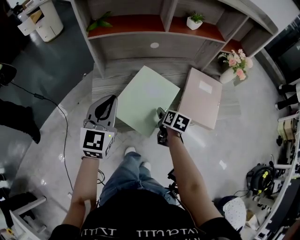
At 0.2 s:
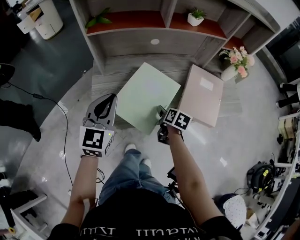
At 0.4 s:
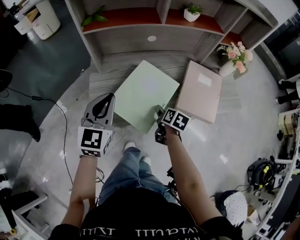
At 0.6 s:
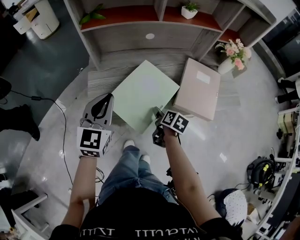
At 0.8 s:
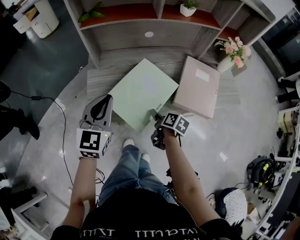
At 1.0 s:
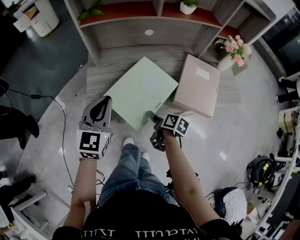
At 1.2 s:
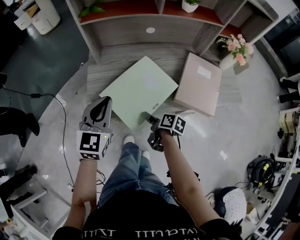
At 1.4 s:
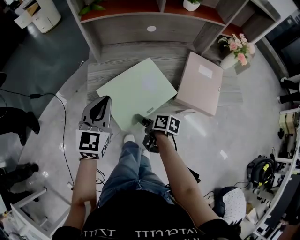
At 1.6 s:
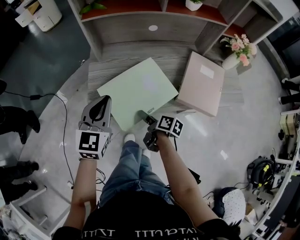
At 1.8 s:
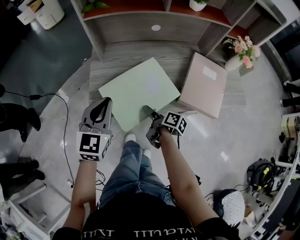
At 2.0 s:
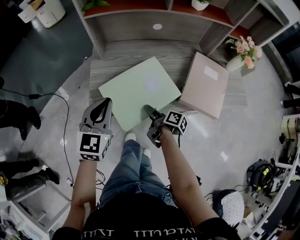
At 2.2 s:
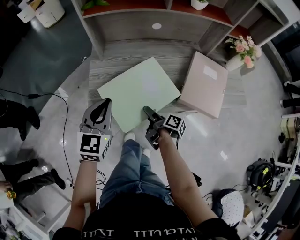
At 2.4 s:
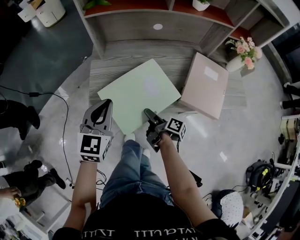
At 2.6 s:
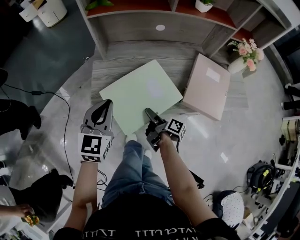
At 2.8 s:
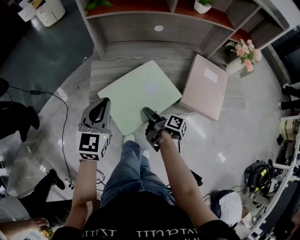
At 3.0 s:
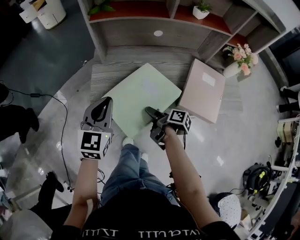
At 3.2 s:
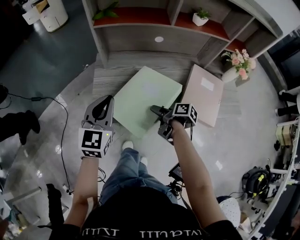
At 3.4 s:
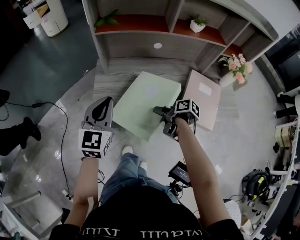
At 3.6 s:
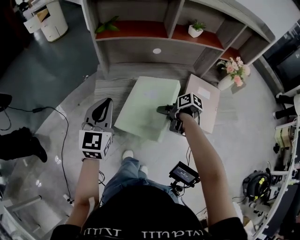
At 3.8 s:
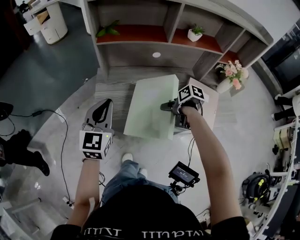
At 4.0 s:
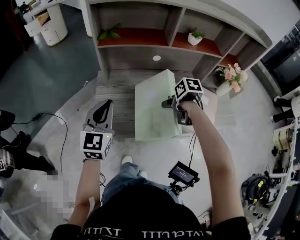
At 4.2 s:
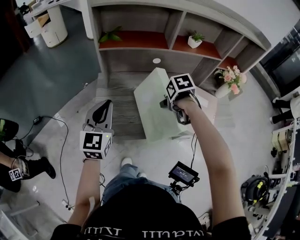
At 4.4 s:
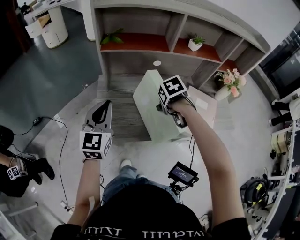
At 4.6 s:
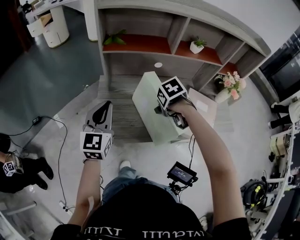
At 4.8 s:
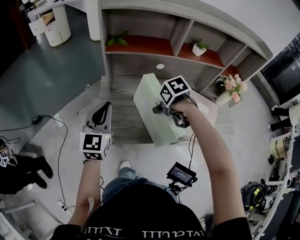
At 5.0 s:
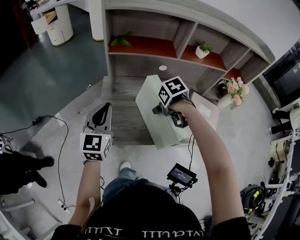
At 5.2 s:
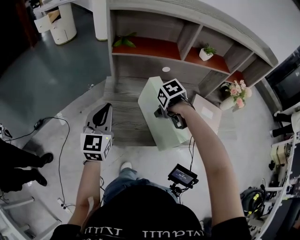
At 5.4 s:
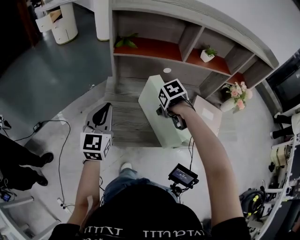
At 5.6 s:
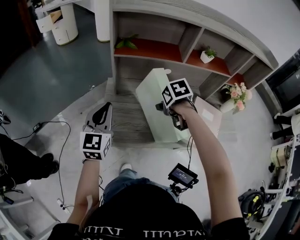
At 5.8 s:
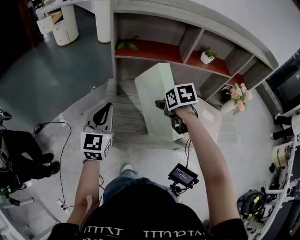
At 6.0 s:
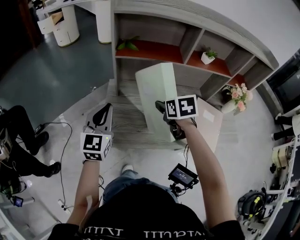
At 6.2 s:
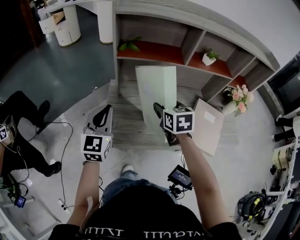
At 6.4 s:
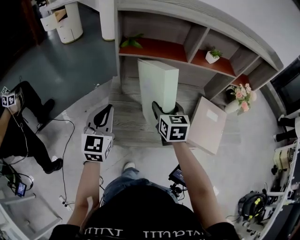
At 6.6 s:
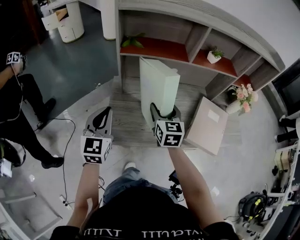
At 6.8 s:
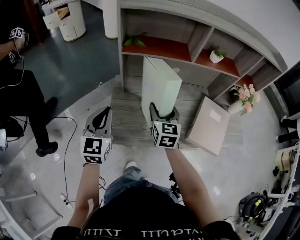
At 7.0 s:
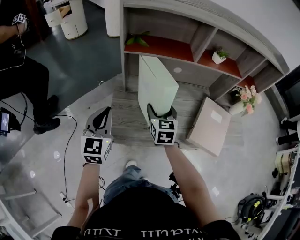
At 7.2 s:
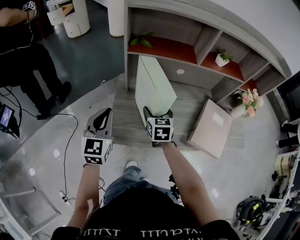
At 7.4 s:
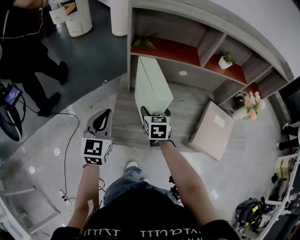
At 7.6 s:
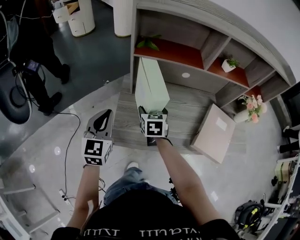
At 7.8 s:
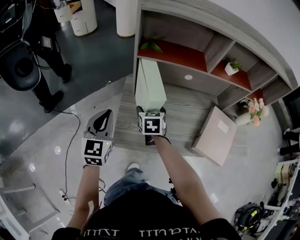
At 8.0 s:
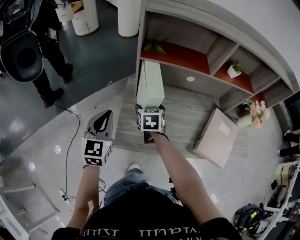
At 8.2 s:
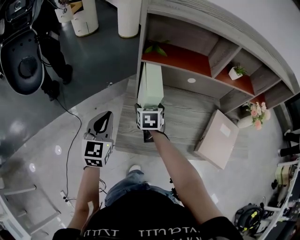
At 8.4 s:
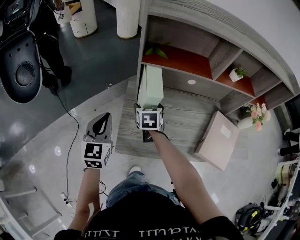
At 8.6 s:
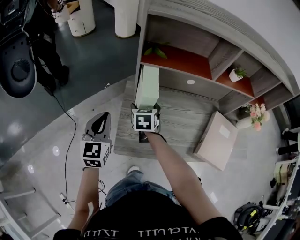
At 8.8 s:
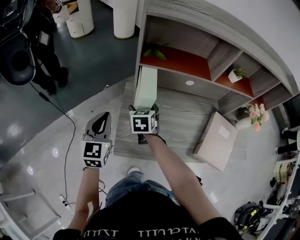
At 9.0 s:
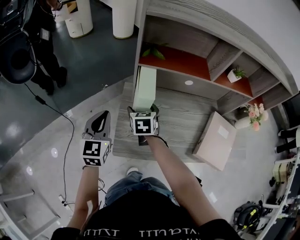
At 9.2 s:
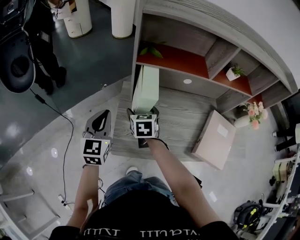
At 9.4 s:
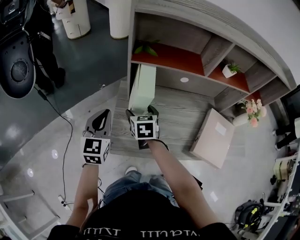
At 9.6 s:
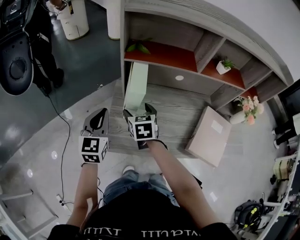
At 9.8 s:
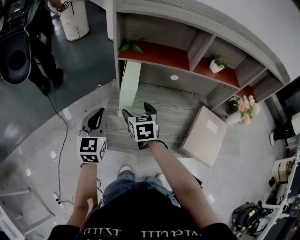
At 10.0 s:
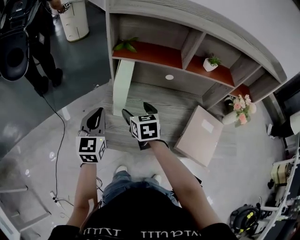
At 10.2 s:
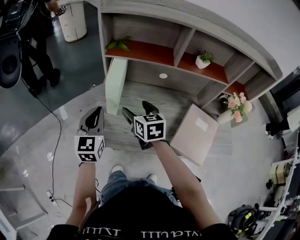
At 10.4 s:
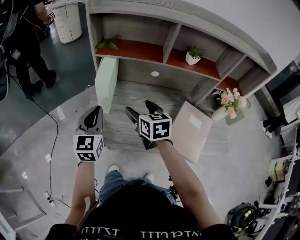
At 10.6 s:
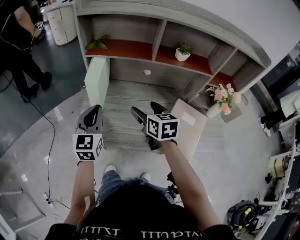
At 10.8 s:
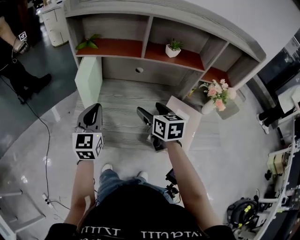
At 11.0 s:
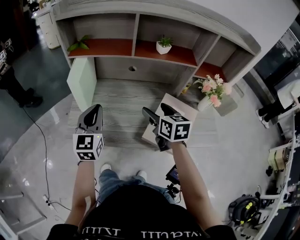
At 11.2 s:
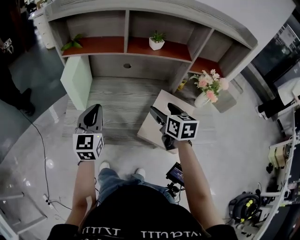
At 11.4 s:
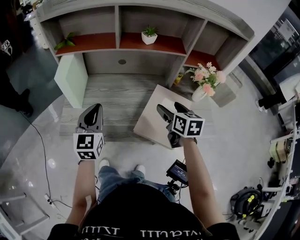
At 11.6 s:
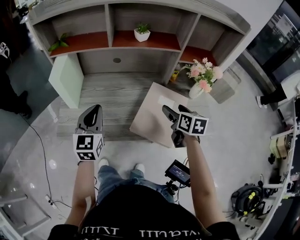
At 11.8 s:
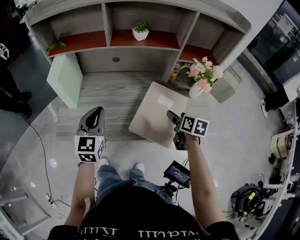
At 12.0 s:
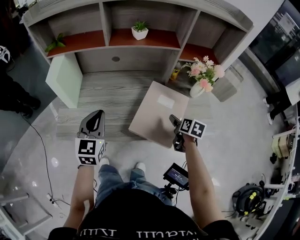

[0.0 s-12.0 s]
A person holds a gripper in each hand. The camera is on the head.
0.0 to 1.6 s: The right gripper is displaced to the left and backward by approximately 15 cm, and rotates roughly 40 degrees, while the left gripper ends up roughly 5 cm from where it was.
3.0 to 4.4 s: The left gripper is displaced upward by approximately 5 cm, while the right gripper moves upward, about 15 cm, and angles its fingers downward, by some 50 degrees.
4.4 to 6.0 s: The right gripper shifts by approximately 10 cm, and tips its fingers upward by approximately 30 degrees.
6.0 to 7.6 s: The left gripper travels to the left by some 5 cm; the right gripper shifts about 15 cm to the left and downward.
7.6 to 9.0 s: The right gripper heads to the left and forward, covering about 10 cm. Meanwhile the left gripper heads forward, covering roughly 5 cm.
9.0 to 10.4 s: The right gripper moves to the right, backward and upward, roughly 25 cm; the left gripper heads to the right and backward, covering some 15 cm.
10.4 to 12.0 s: The left gripper shifts roughly 20 cm to the right, while the right gripper travels to the right by approximately 40 cm, and swivels roughly 40 degrees.

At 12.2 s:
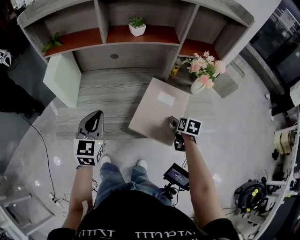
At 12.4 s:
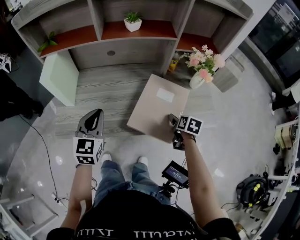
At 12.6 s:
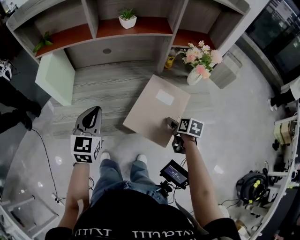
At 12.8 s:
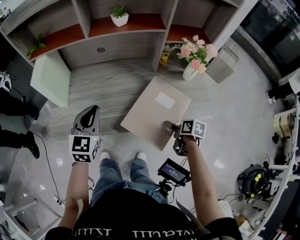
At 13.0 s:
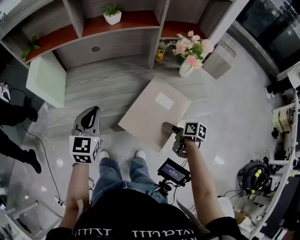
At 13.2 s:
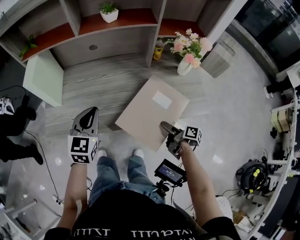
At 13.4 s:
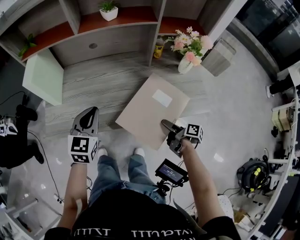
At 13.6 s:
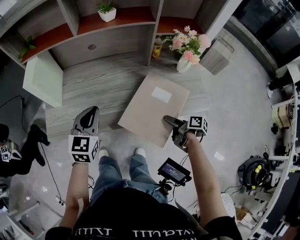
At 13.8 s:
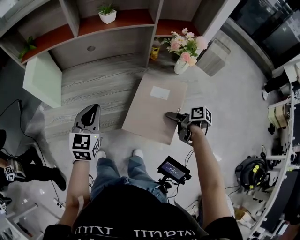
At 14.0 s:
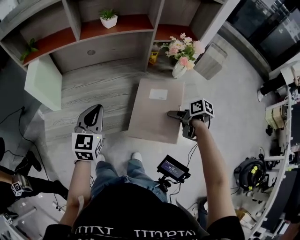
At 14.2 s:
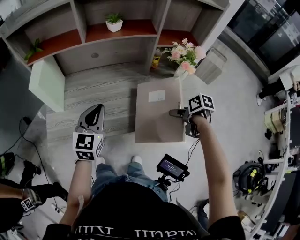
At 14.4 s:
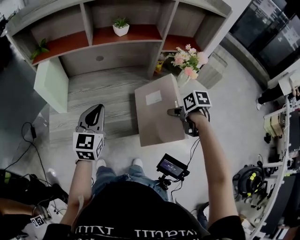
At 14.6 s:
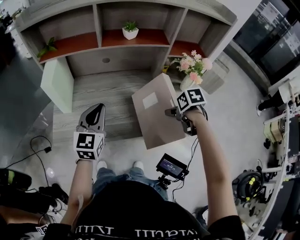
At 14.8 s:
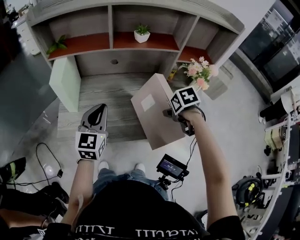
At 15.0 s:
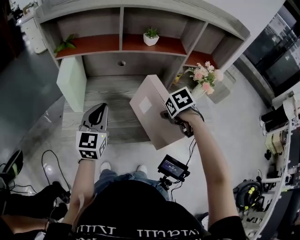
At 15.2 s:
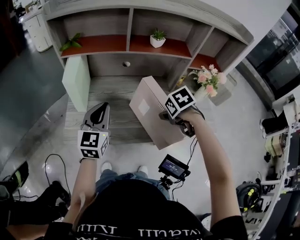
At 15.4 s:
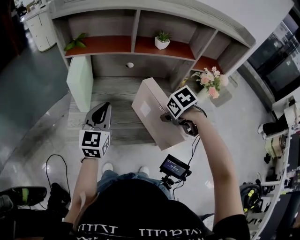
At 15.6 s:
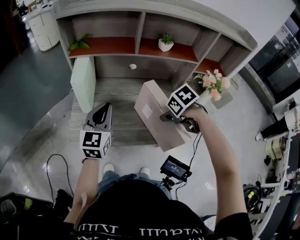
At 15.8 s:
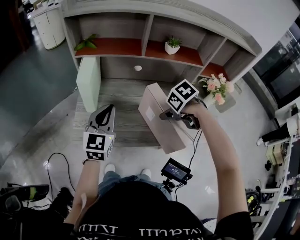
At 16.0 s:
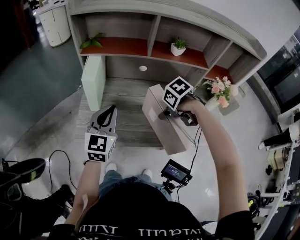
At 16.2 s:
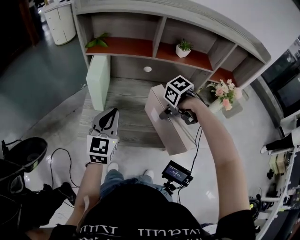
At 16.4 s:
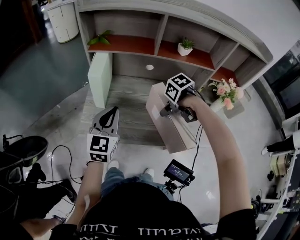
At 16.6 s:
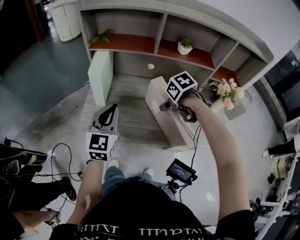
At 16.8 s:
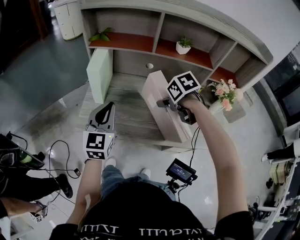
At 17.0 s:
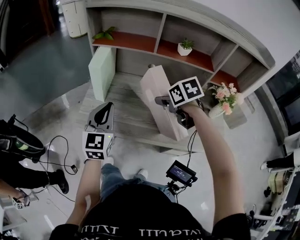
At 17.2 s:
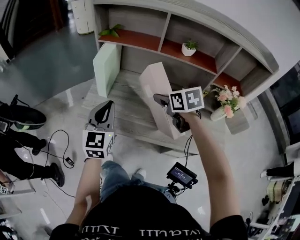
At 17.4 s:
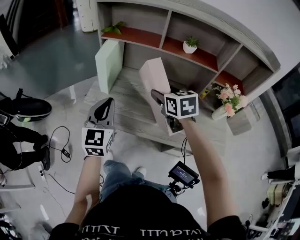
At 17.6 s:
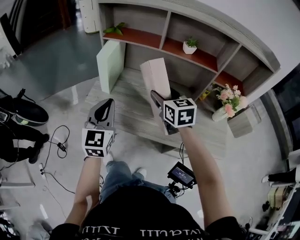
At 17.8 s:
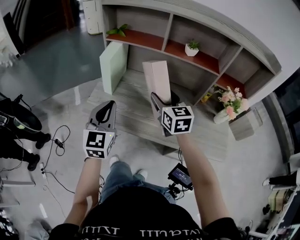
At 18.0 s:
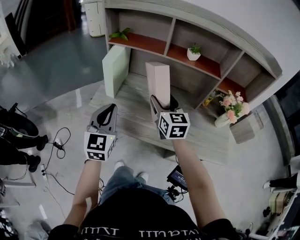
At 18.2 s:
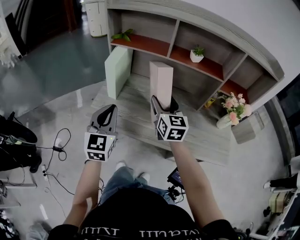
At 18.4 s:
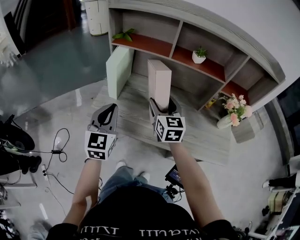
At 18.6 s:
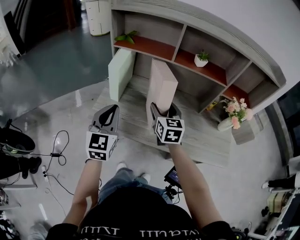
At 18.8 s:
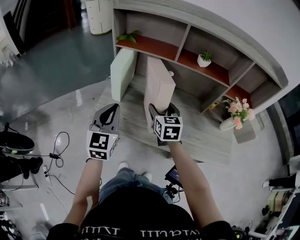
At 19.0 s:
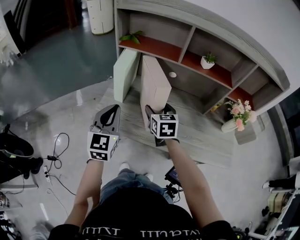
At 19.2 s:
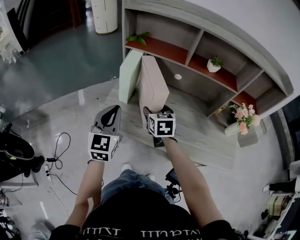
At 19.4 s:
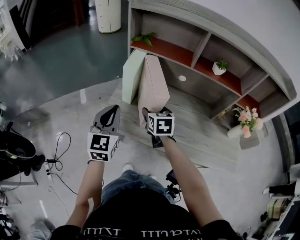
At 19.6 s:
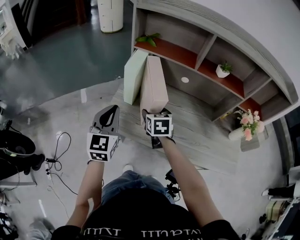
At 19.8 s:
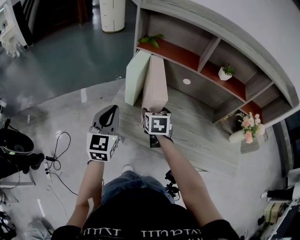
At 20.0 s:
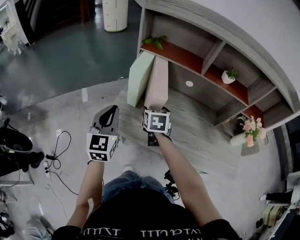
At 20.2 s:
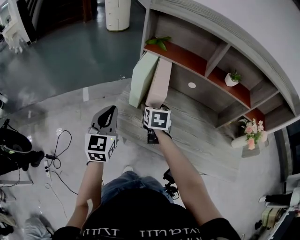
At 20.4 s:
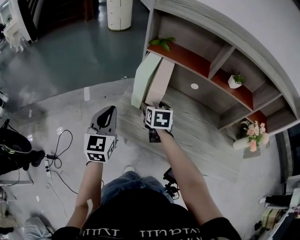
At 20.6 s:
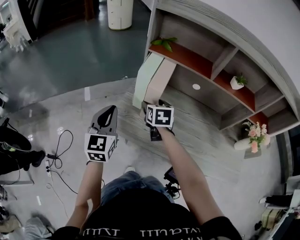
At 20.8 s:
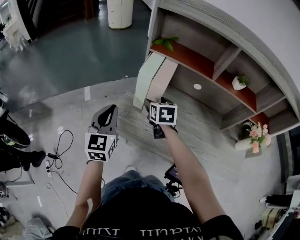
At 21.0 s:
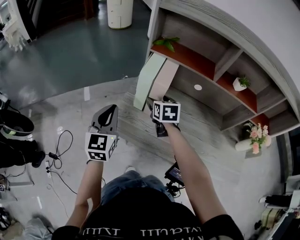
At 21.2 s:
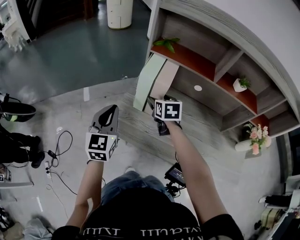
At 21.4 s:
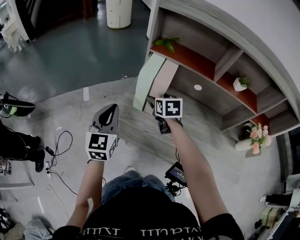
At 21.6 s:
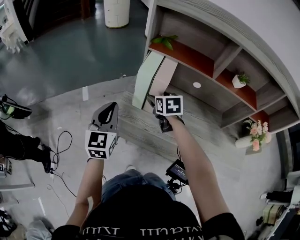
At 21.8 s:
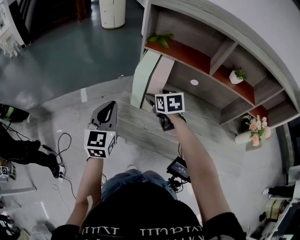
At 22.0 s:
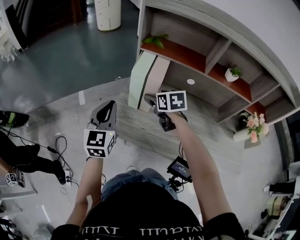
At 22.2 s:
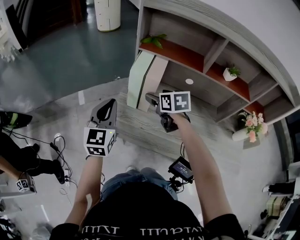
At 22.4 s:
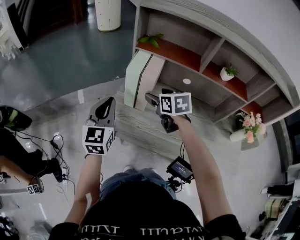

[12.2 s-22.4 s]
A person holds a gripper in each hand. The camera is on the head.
12.2 to 13.6 s: The left gripper heads to the right, covering about 5 cm, while the right gripper moves backward, some 10 cm, and turns by some 50 degrees.
13.6 to 15.2 s: The right gripper ends up roughly 25 cm from where it was, and rotates around the line of its fingers by some 70 degrees, counterclockwise from behind. Meanwhile the left gripper ends up roughly 15 cm from where it was.
15.2 to 16.6 s: The right gripper shifts by approximately 10 cm. The left gripper shifts by some 5 cm.
16.6 to 18.0 s: The right gripper travels upward by some 10 cm, and angles its fingers upward, by about 60 degrees. The left gripper heads backward, covering roughly 10 cm.
18.0 to 19.4 s: The right gripper heads to the left and downward, covering roughly 15 cm, and rotates roughly 30 degrees; the left gripper is displaced to the left and forward by roughly 10 cm.
19.4 to 21.0 s: The right gripper is displaced forward and to the left by about 10 cm, while the left gripper shifts about 10 cm to the left and forward.
21.0 to 22.4 s: The right gripper moves upward, about 5 cm.

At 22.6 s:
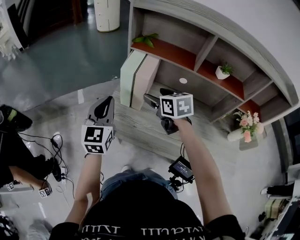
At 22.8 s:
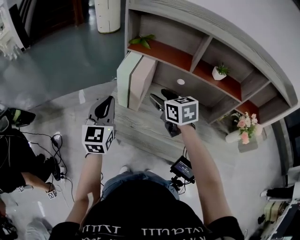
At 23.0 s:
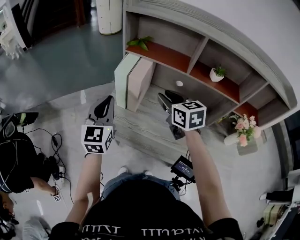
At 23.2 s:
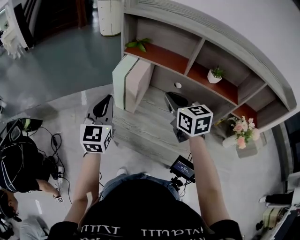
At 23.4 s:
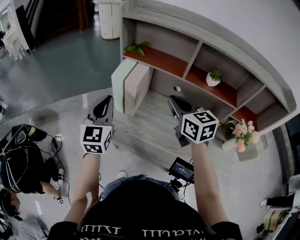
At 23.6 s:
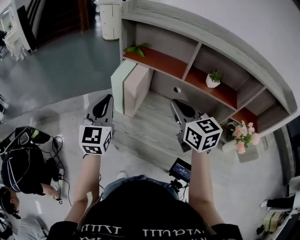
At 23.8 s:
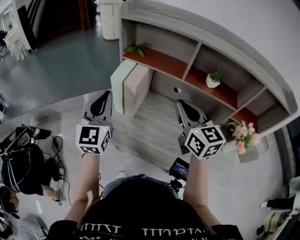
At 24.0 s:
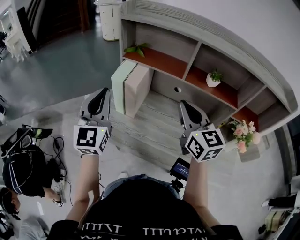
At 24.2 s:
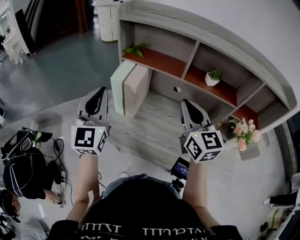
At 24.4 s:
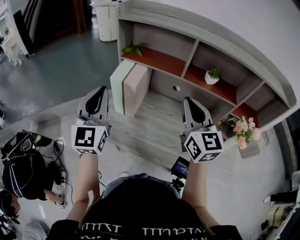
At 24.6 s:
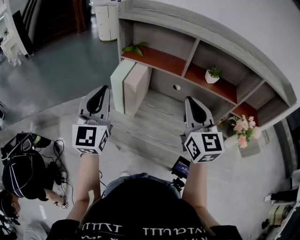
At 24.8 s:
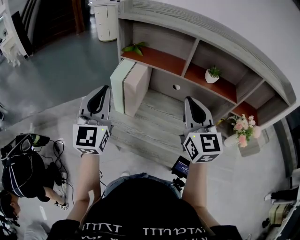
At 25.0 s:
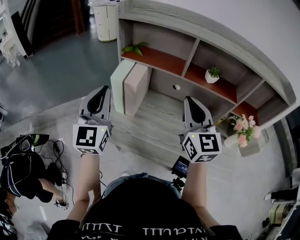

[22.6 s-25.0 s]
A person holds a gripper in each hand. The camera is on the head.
22.6 to 23.8 s: The left gripper travels upward and to the right by approximately 10 cm. Meanwhile the right gripper shifts about 20 cm upward, to the right and backward, changes its angle by about 30 degrees, and closes its fingers.
23.8 to 25.0 s: The grippers move only a little.
